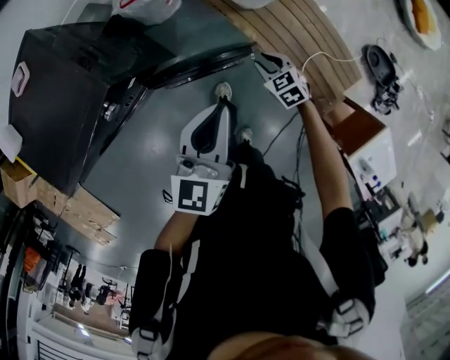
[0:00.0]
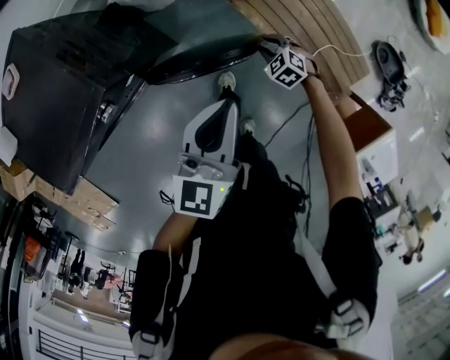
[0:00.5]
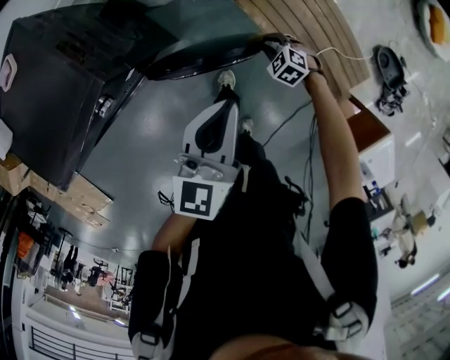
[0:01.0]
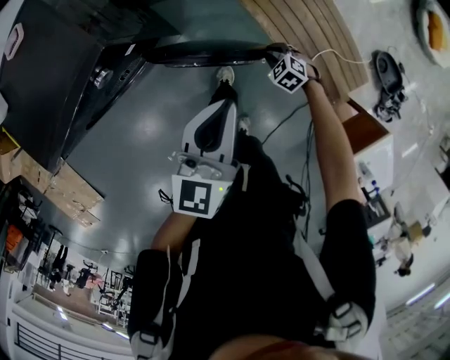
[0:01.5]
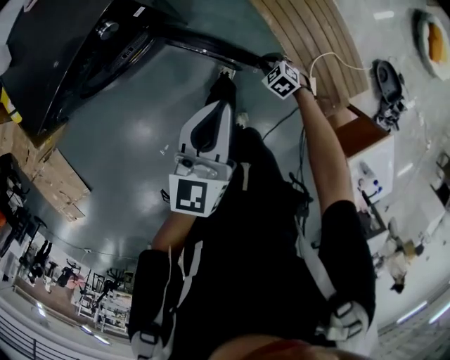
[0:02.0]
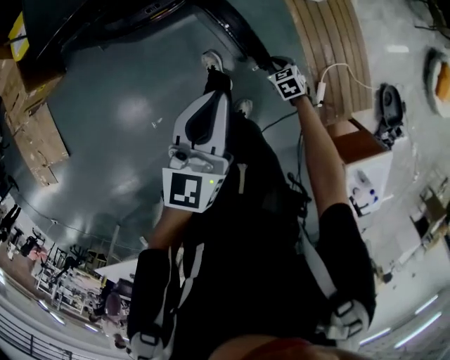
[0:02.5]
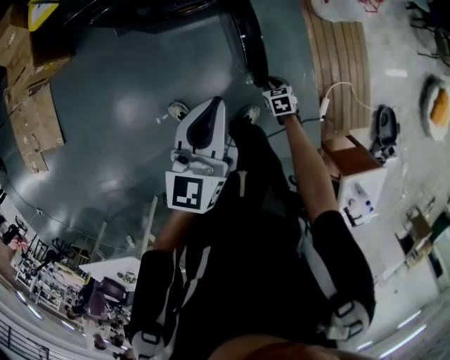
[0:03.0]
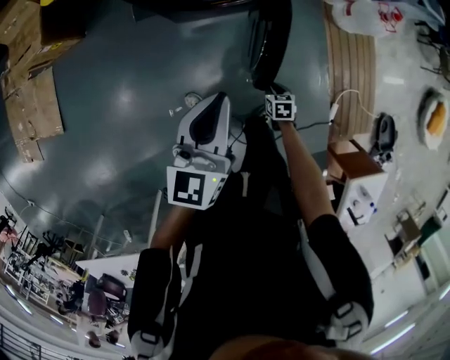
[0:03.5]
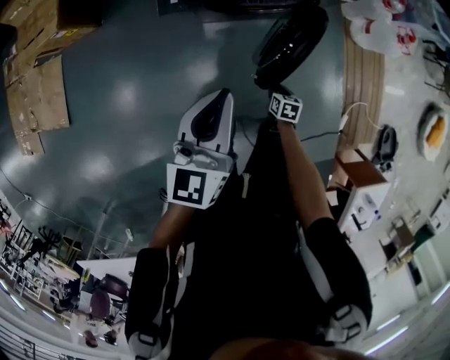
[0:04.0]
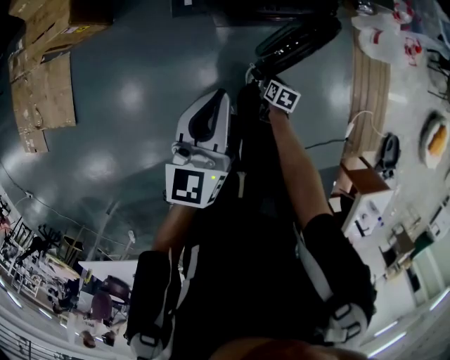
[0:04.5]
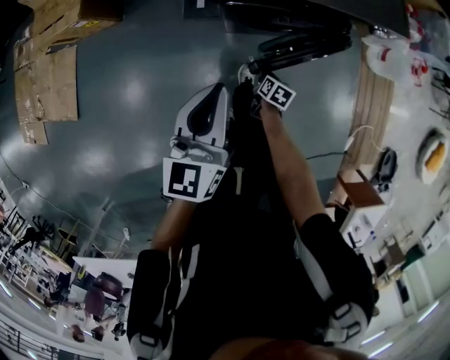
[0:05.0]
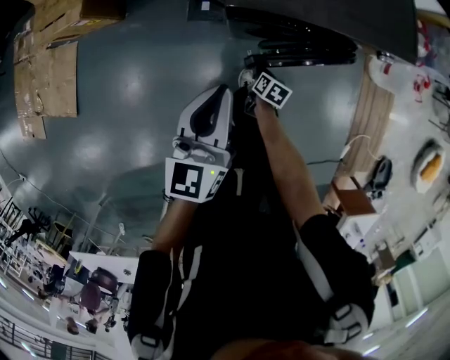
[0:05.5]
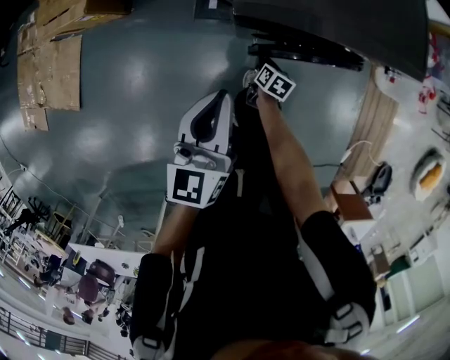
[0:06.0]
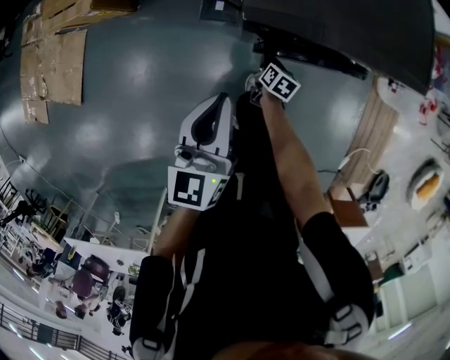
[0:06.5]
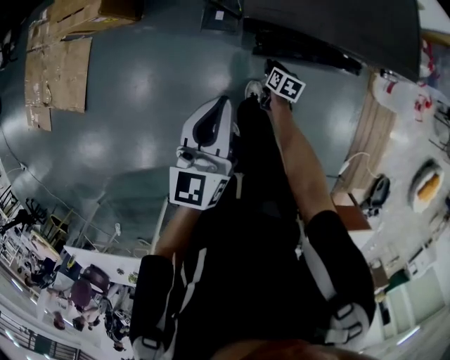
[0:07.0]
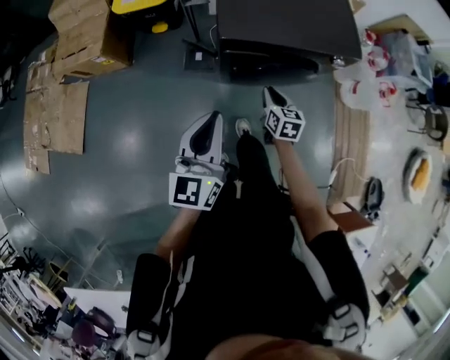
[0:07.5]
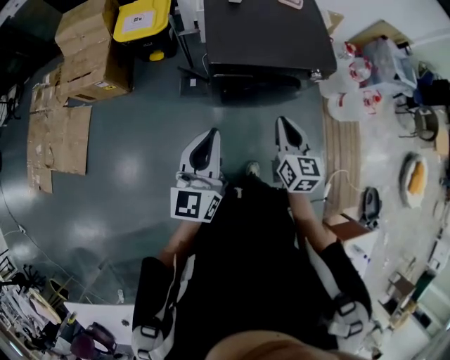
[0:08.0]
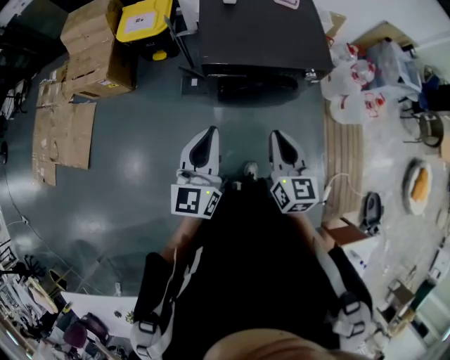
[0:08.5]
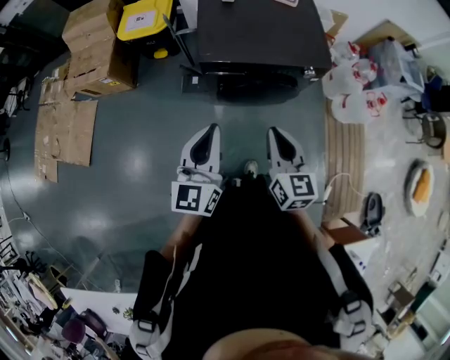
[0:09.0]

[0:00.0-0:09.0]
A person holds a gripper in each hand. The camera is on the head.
0:00.0 to 0:02.0: The left gripper heads backward, covering about 20 cm. The right gripper moves backward and downward, some 20 cm, and changes its angle by some 20 degrees.
0:02.0 to 0:04.5: Both grippers are carried to the left, roughly 60 cm. The right gripper rotates around the line of its fingers by about 50 degrees, clockwise from behind, while the left gripper swivels approximately 30 degrees.
0:04.5 to 0:07.0: The right gripper heads forward and to the left, covering approximately 25 cm; the left gripper travels forward and to the left by about 10 cm.
0:07.0 to 0:09.0: The right gripper goes approximately 50 cm upward and backward, and angles its fingers upward, by about 40 degrees; the left gripper is displaced upward, backward and to the right by about 25 cm.

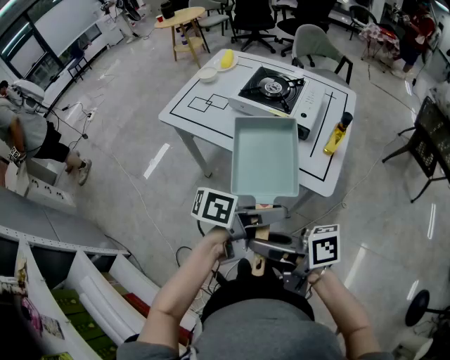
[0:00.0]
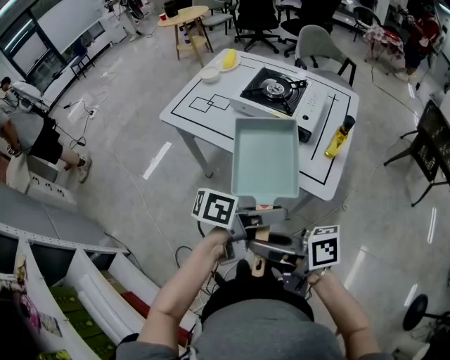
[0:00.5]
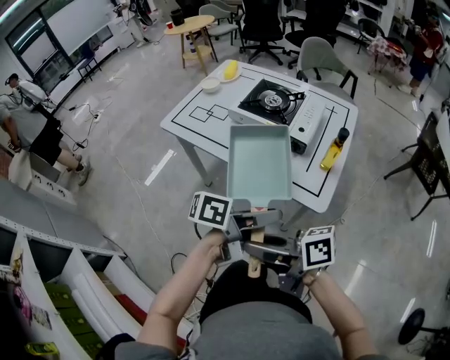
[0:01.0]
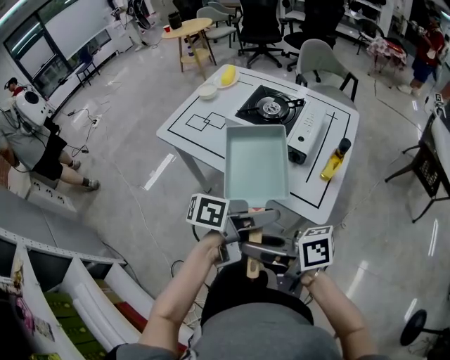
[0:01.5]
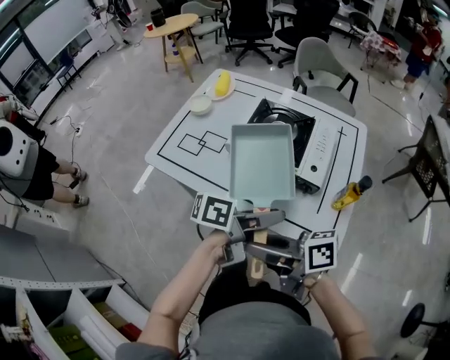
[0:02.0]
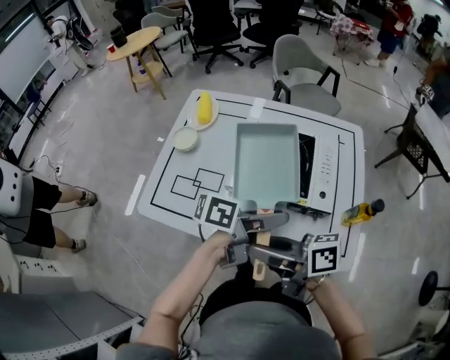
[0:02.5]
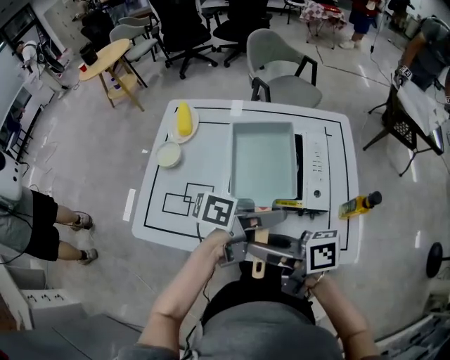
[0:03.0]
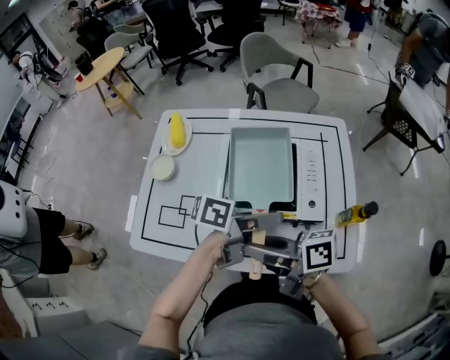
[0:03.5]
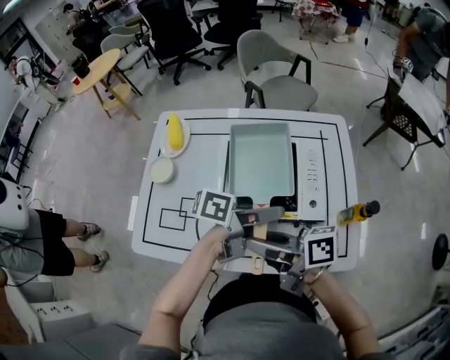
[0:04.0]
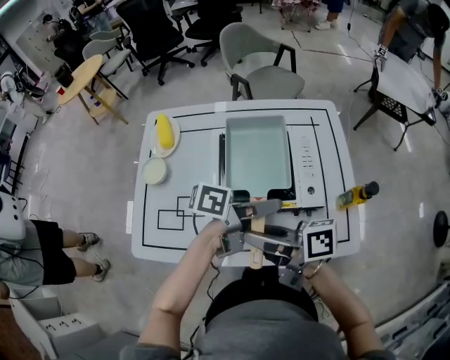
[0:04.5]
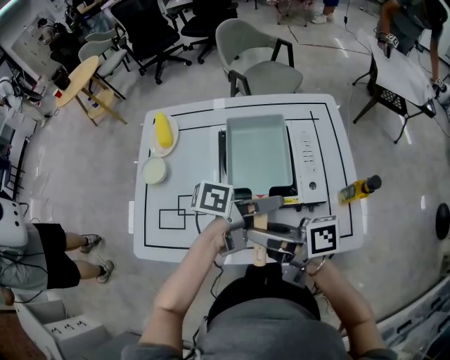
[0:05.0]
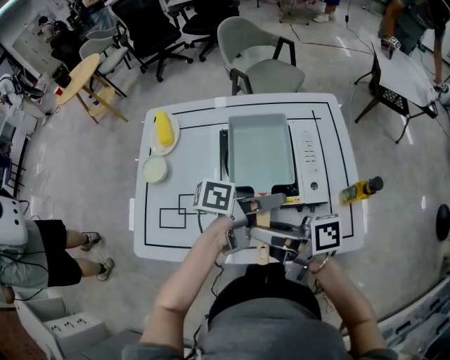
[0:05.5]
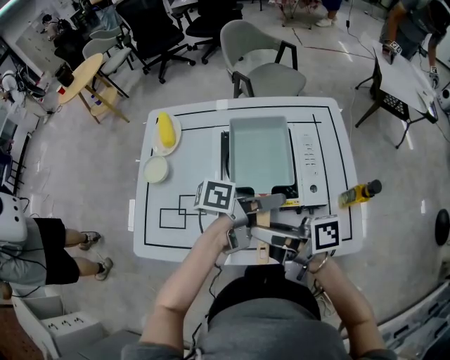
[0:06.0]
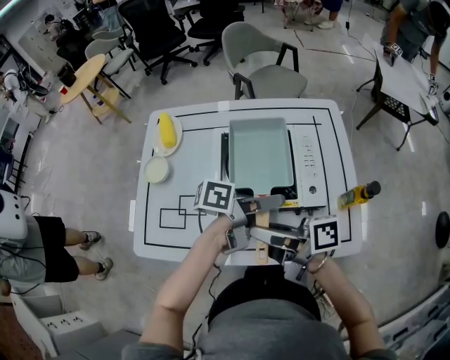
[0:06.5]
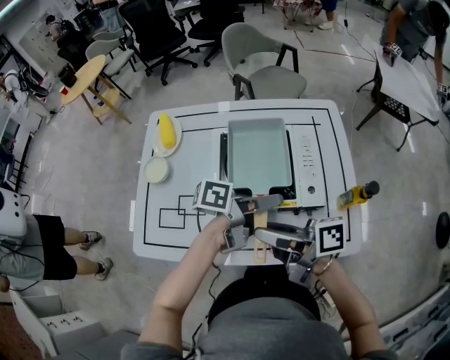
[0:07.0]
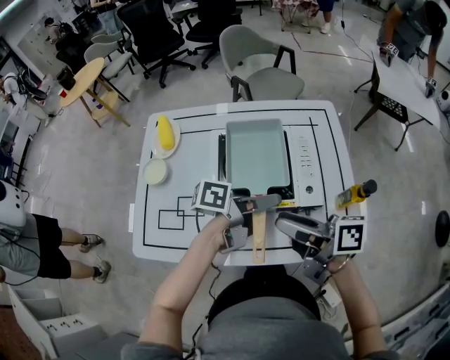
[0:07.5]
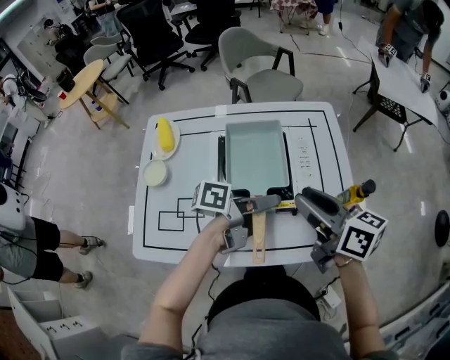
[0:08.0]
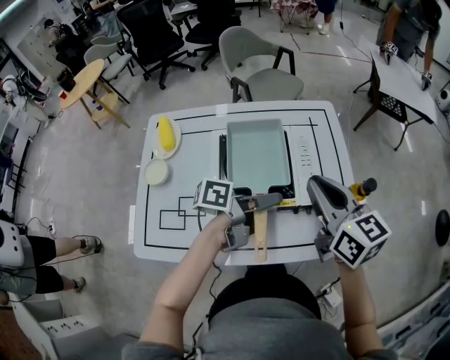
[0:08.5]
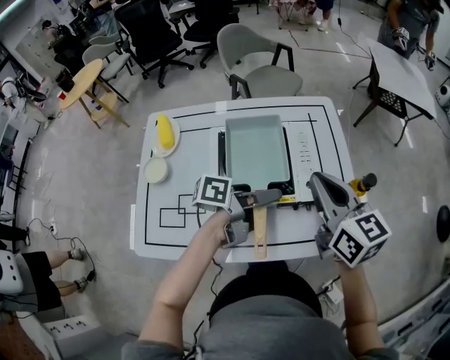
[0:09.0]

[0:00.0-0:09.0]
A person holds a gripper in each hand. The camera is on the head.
0:00.0 to 0:02.0: The left gripper ends up roughly 20 cm from where it was, while the right gripper shifts by about 20 cm.
0:02.0 to 0:04.5: The left gripper shifts by some 15 cm, and swivels some 30 degrees, while the right gripper shifts by some 20 cm, and turns by roughly 30 degrees.
0:04.5 to 0:07.0: The grippers make only small movements.
0:07.0 to 0:09.0: The right gripper ends up roughly 15 cm from where it was, rotates approximately 70 degrees, and closes its fingers.

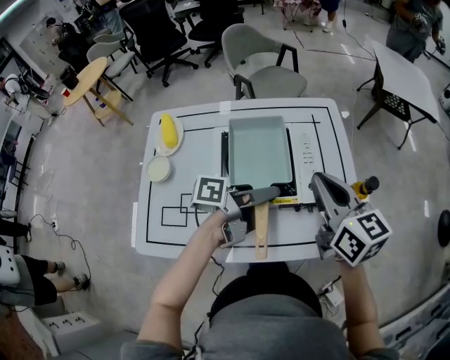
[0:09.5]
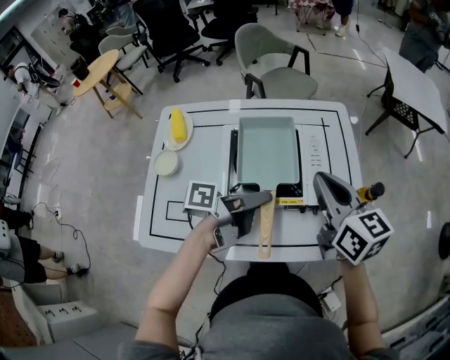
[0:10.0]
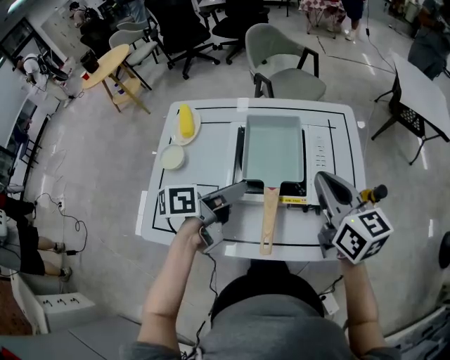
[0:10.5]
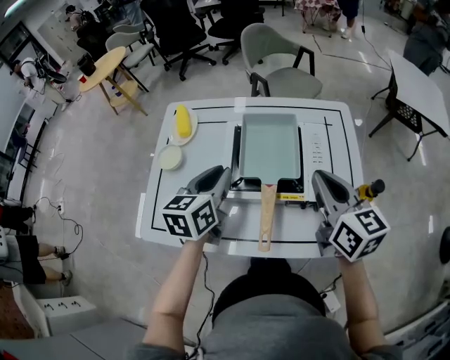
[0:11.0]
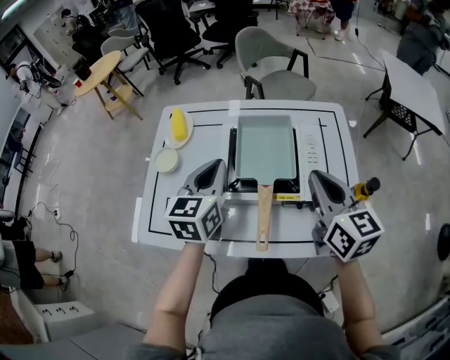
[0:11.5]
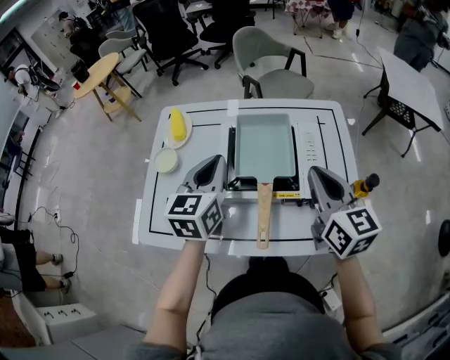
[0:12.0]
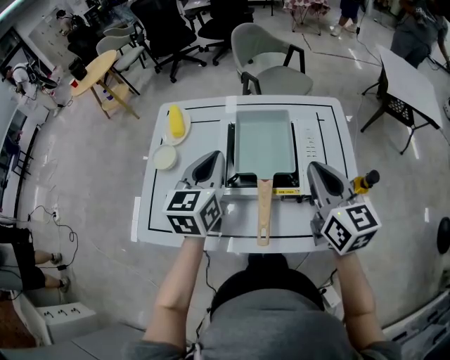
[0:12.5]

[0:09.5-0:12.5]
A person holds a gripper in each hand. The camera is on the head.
0:09.5 to 0:11.0: The left gripper moves about 15 cm, swivels some 70 degrees, and closes its fingers.
0:11.0 to 0:12.5: The grippers make only small movements.

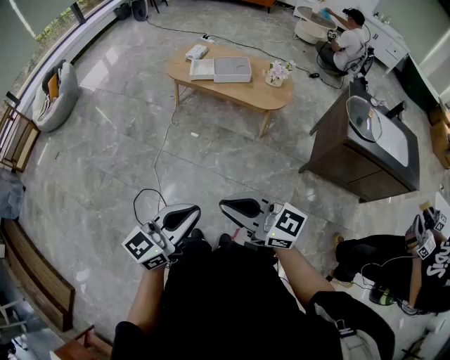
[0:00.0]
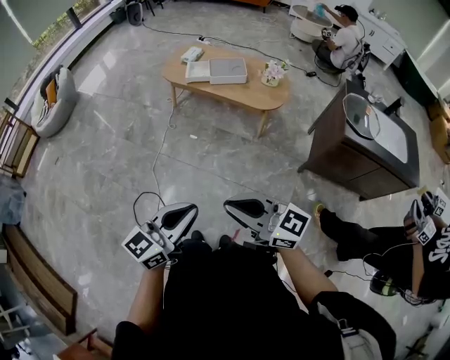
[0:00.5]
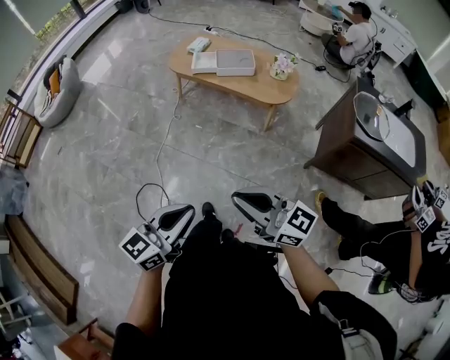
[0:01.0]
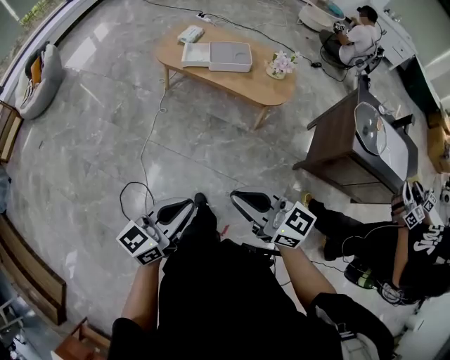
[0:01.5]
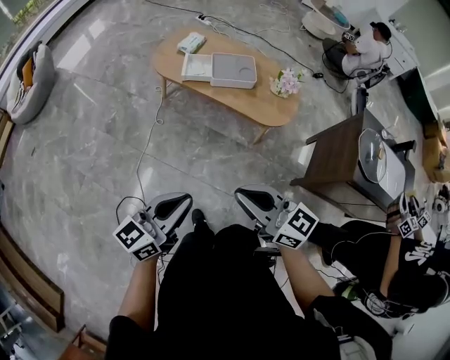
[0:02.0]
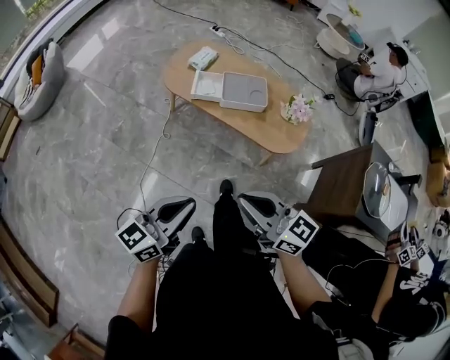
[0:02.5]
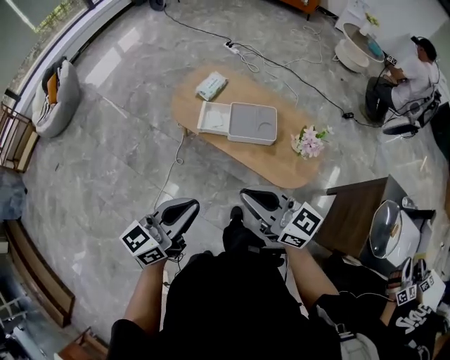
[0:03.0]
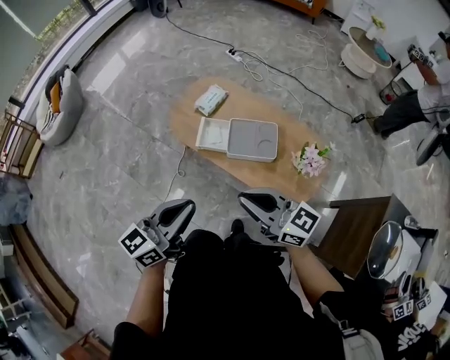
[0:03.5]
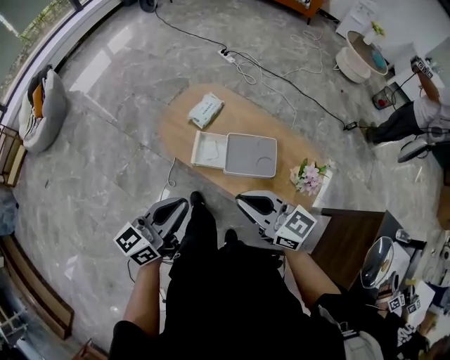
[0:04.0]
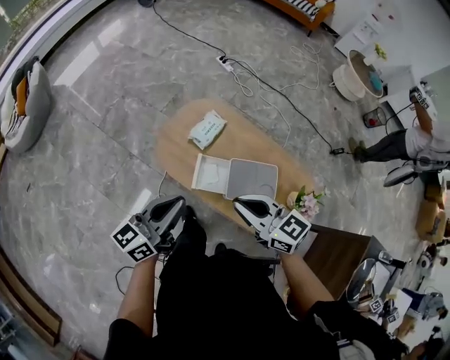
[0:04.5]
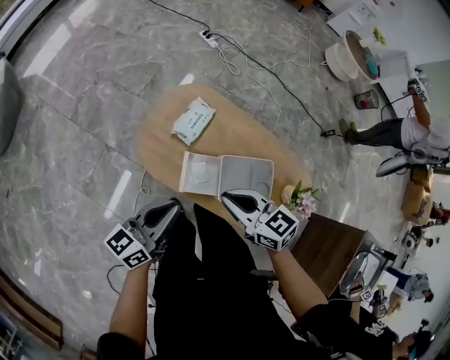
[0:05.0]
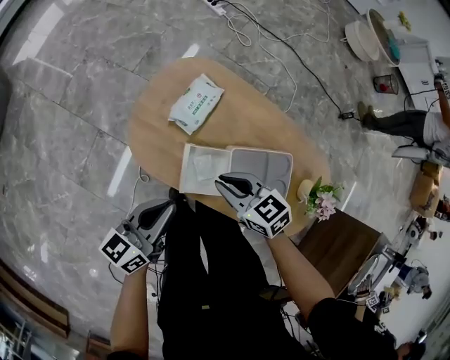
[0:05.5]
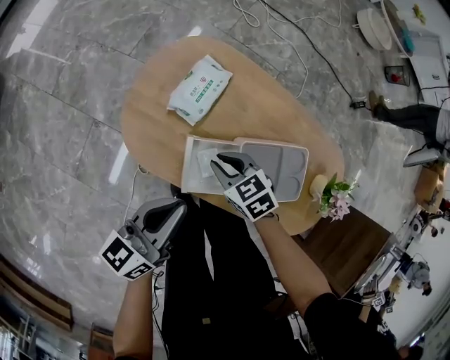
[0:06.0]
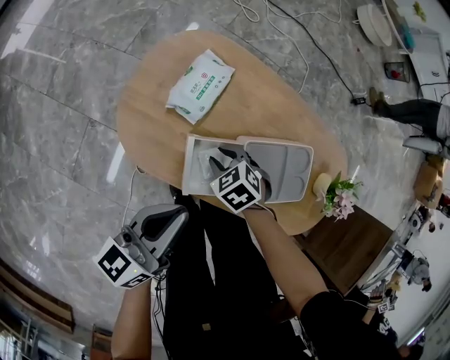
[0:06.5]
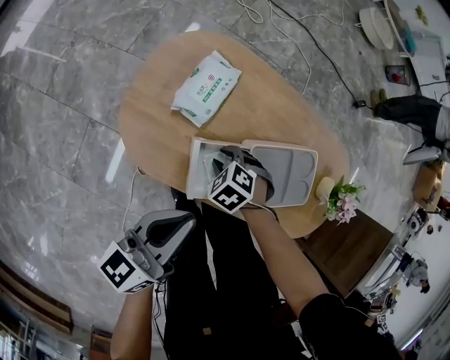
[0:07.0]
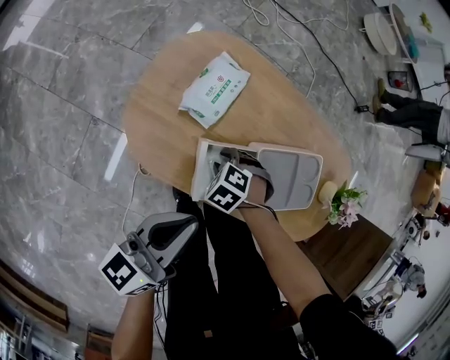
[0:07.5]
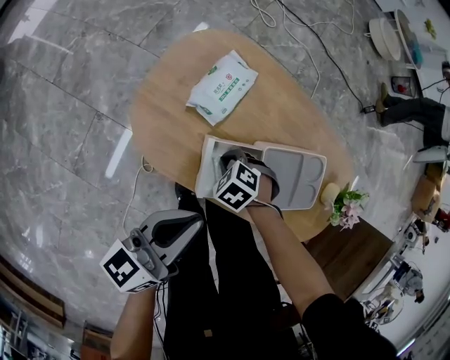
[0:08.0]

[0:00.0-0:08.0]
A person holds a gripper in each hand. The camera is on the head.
0:00.0 to 0:02.0: Both grippers travel together forward, approximately 30 cm.
0:02.0 to 0:04.0: The two grippers travel together, forward, about 50 cm.
0:04.0 to 0:06.0: Both grippers travel together downward and forward, approximately 40 cm. The right gripper points its fingers roughly 50 degrees further downward.
0:06.0 to 0:08.0: The right gripper heads downward, covering some 10 cm, and turns by approximately 40 degrees.
